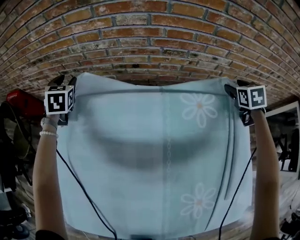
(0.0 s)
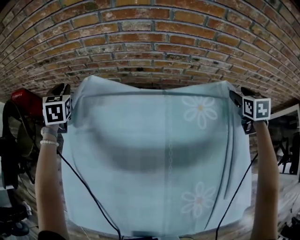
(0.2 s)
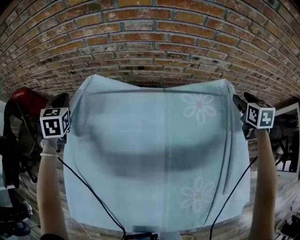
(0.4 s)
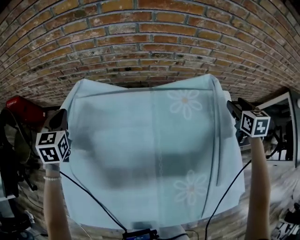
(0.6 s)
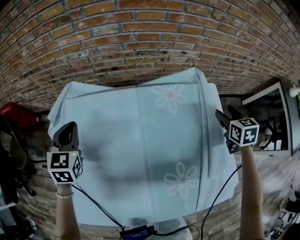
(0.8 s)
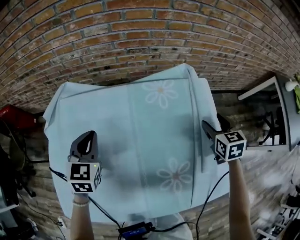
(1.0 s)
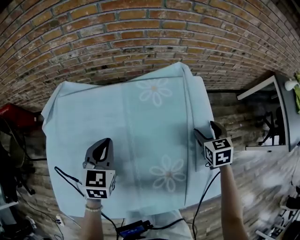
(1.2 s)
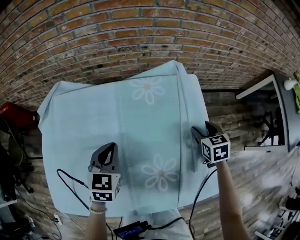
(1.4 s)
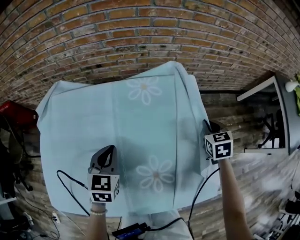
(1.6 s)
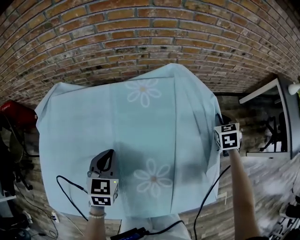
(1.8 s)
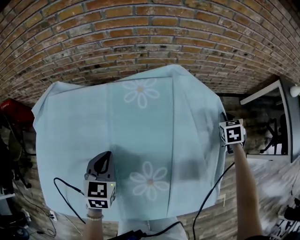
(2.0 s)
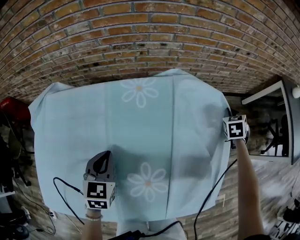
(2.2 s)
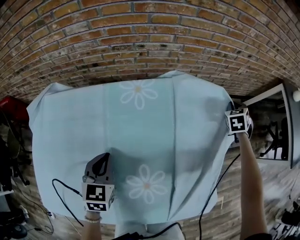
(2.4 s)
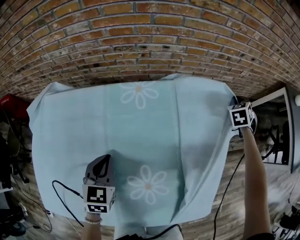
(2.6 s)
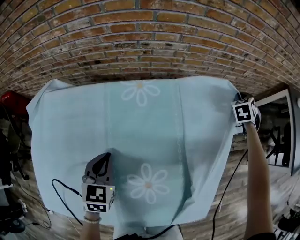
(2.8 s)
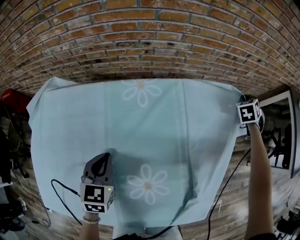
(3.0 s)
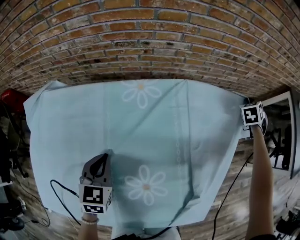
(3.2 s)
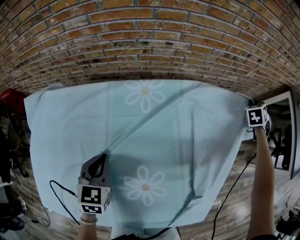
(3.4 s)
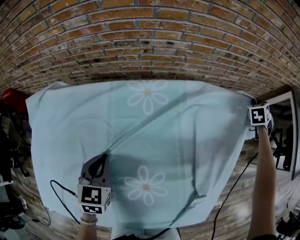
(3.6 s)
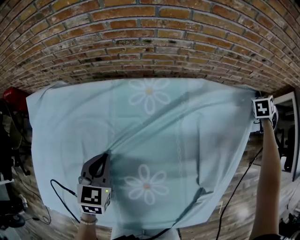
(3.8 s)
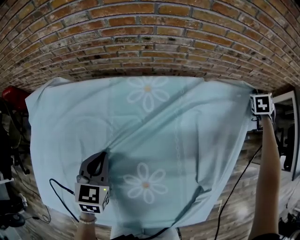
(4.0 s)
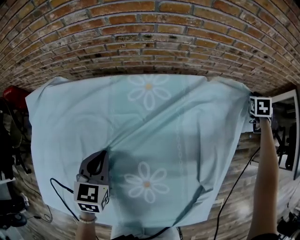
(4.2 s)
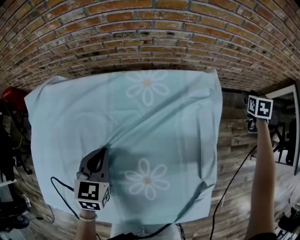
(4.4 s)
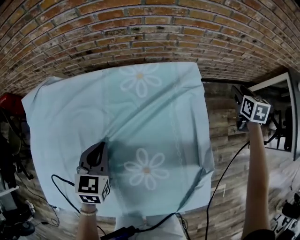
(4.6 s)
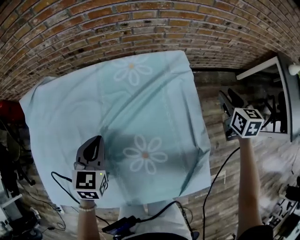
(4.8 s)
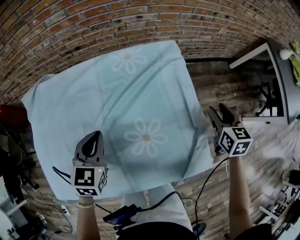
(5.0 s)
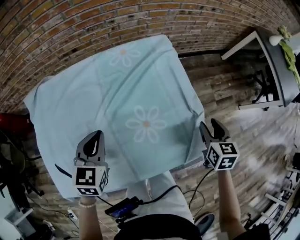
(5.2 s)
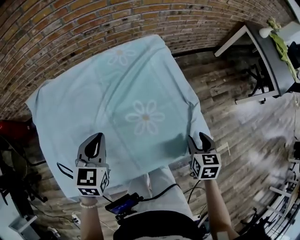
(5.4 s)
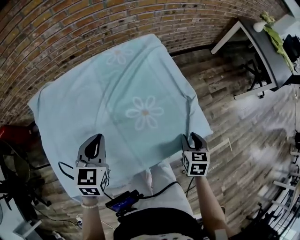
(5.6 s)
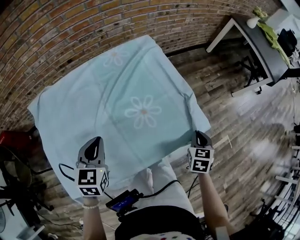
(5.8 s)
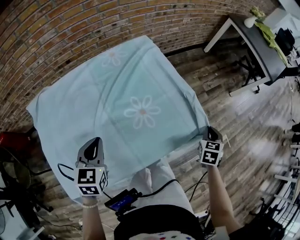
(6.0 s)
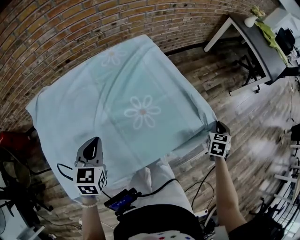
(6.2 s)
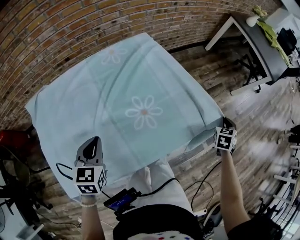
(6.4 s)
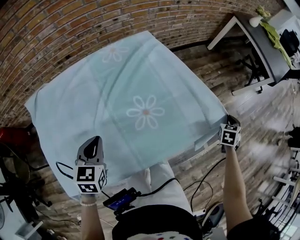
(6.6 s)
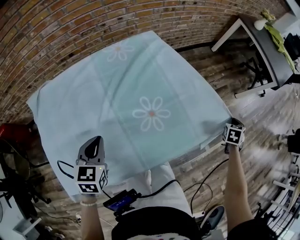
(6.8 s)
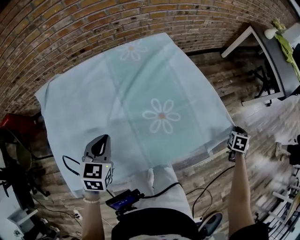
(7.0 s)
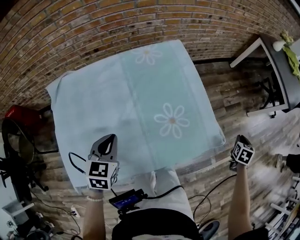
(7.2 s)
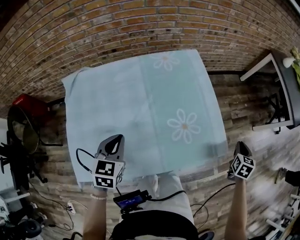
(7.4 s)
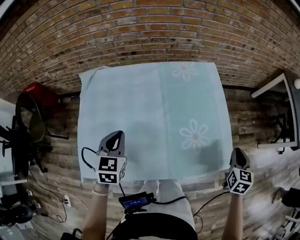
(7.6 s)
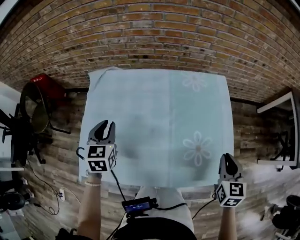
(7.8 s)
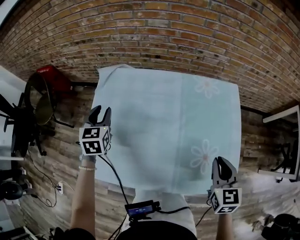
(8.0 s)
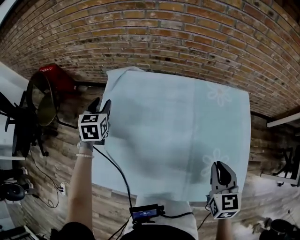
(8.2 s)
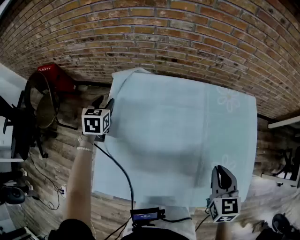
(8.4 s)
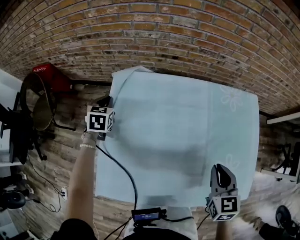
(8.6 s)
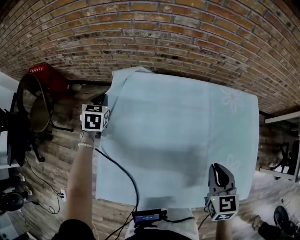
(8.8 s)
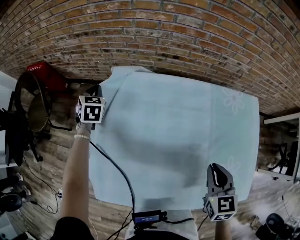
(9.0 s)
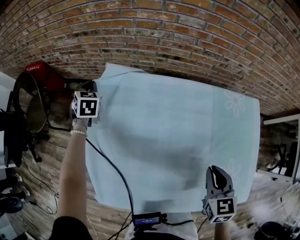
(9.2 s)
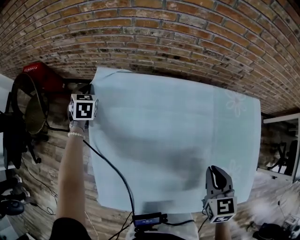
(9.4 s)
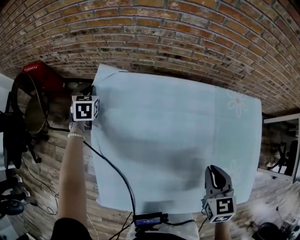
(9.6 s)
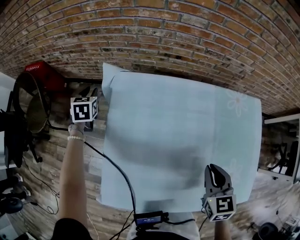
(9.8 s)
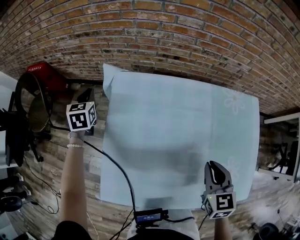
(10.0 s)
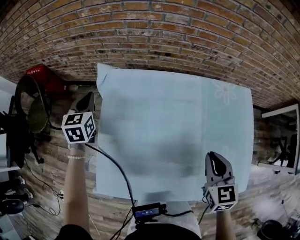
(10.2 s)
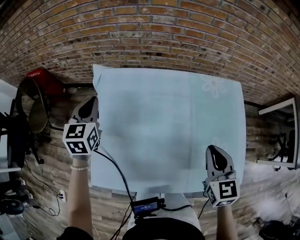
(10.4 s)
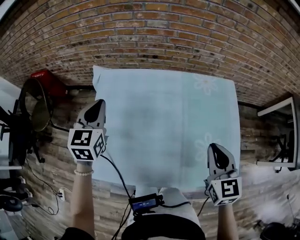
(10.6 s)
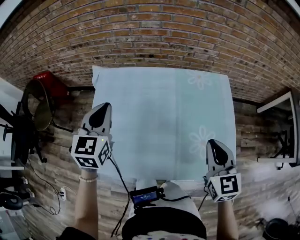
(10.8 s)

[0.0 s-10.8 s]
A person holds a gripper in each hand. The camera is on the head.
0.0 to 1.6 s: The left gripper is displaced to the right and backward by roughly 50 cm, turns by approximately 30 degrees, and closes. Meanwhile the right gripper shifts some 25 cm backward, and closes up.
1.6 to 3.0 s: The right gripper is displaced forward and to the right by some 30 cm, and swivels approximately 30 degrees.
3.0 to 4.6 s: The right gripper shifts some 5 cm backward, turns by some 40 degrees, and opens its fingers.
4.6 to 6.2 s: The right gripper changes place by about 50 cm, rotates approximately 40 degrees, and closes up; the left gripper ends up roughly 15 cm from where it was.
6.2 to 7.8 s: The right gripper moves about 30 cm, and rotates some 50 degrees. Meanwhile the left gripper changes place by approximately 20 cm, and changes its angle by some 30 degrees.
7.8 to 9.2 s: The right gripper is displaced to the left and forward by approximately 25 cm; the left gripper travels forward and to the left by roughly 40 cm, rotates some 20 degrees, and opens and closes again.
9.2 to 10.8 s: The left gripper goes approximately 40 cm backward, to the right and upward, changes its angle by roughly 30 degrees, and opens, then closes once more, while the right gripper shifts approximately 15 cm upward, to the right and backward.

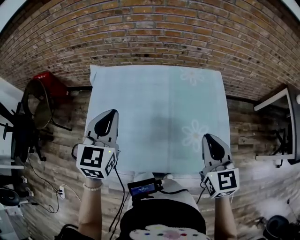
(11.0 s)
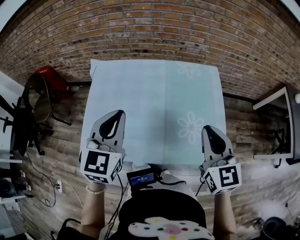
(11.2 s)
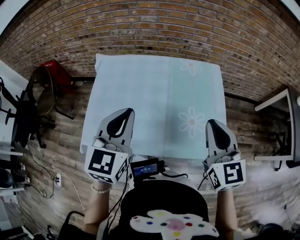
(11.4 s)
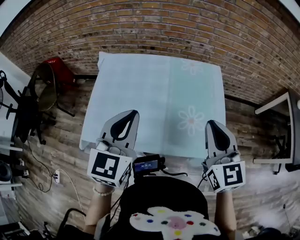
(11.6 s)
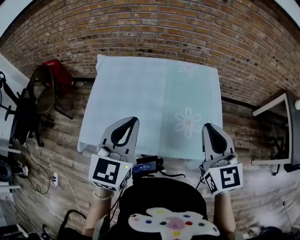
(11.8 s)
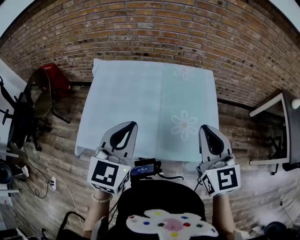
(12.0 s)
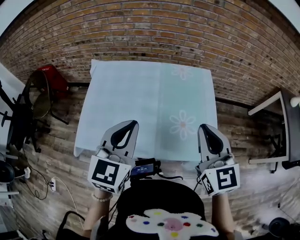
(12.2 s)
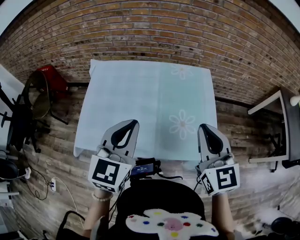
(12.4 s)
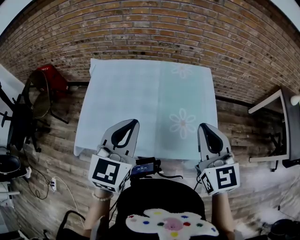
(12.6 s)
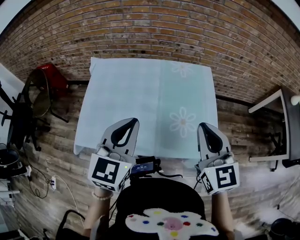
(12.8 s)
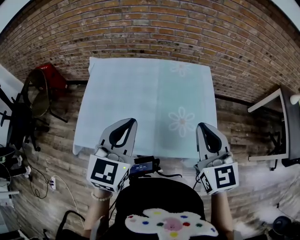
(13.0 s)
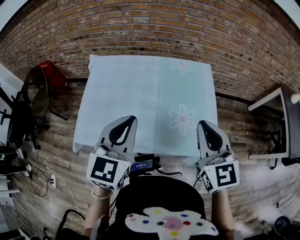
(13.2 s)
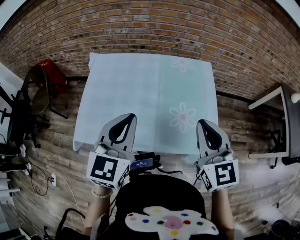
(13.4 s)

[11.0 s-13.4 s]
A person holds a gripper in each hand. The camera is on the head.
11.0 to 12.2 s: The left gripper goes some 15 cm backward and to the right. Meanwhile the right gripper travels upward and backward by about 10 cm.
12.2 to 13.4 s: The grippers make only small movements.

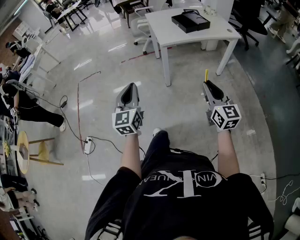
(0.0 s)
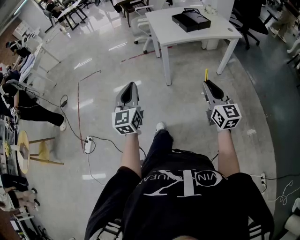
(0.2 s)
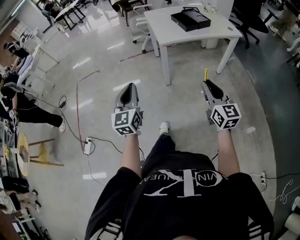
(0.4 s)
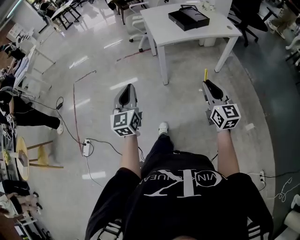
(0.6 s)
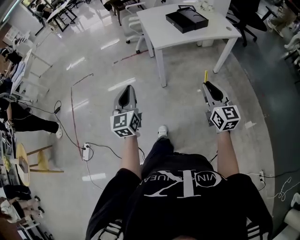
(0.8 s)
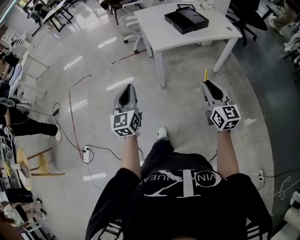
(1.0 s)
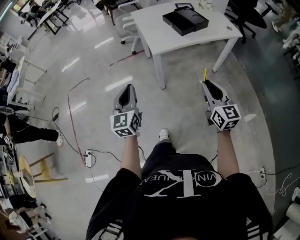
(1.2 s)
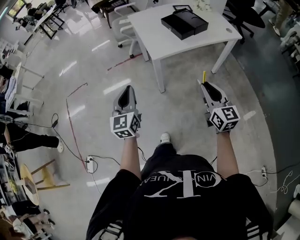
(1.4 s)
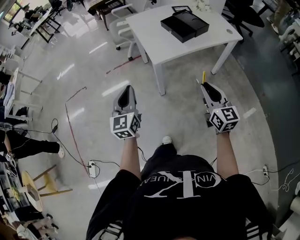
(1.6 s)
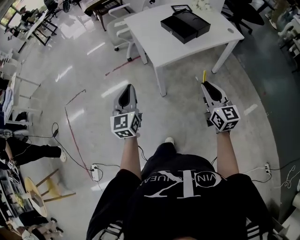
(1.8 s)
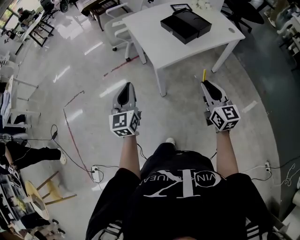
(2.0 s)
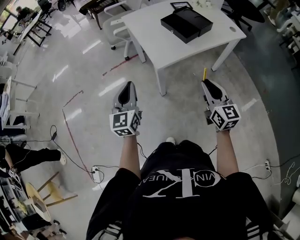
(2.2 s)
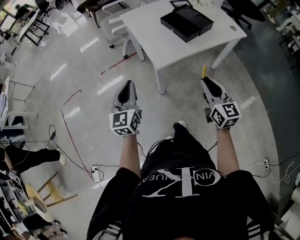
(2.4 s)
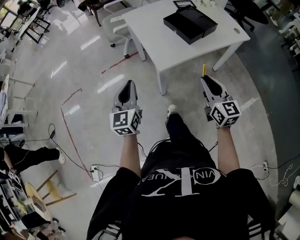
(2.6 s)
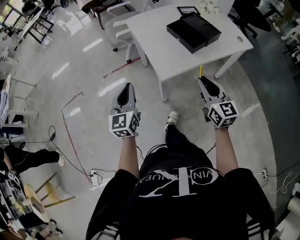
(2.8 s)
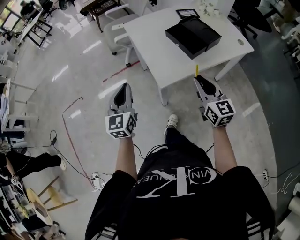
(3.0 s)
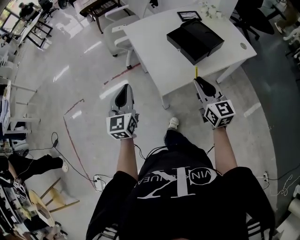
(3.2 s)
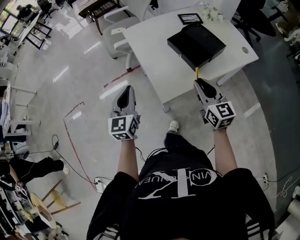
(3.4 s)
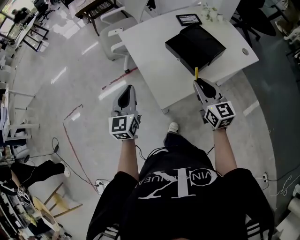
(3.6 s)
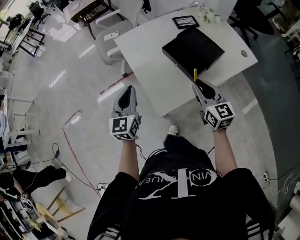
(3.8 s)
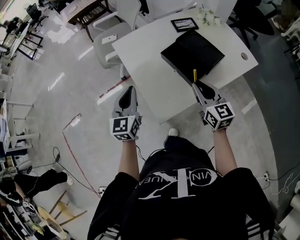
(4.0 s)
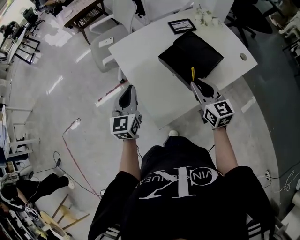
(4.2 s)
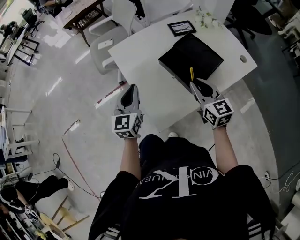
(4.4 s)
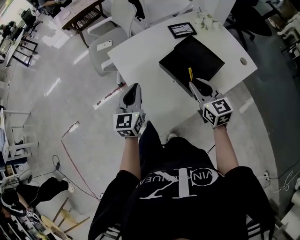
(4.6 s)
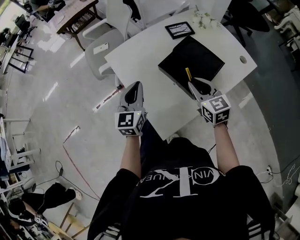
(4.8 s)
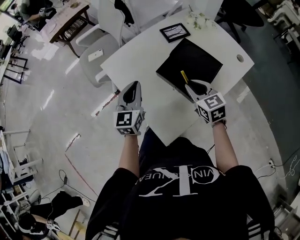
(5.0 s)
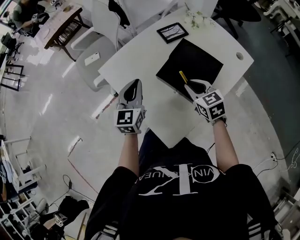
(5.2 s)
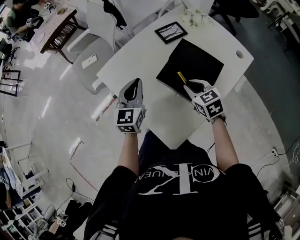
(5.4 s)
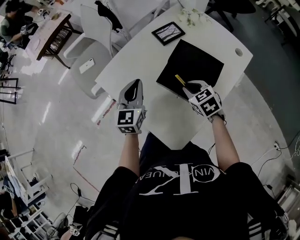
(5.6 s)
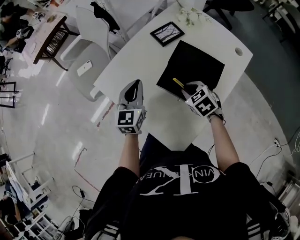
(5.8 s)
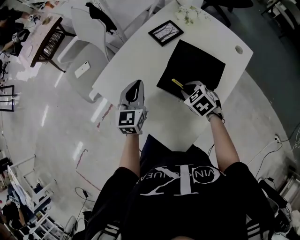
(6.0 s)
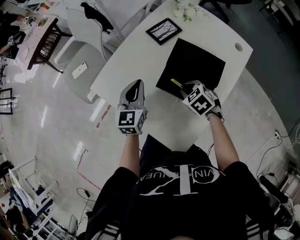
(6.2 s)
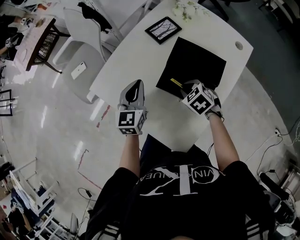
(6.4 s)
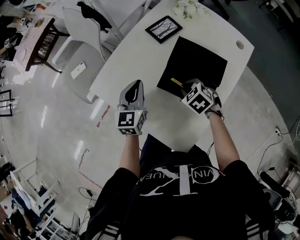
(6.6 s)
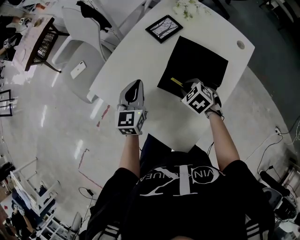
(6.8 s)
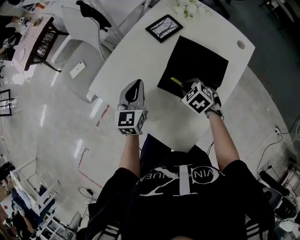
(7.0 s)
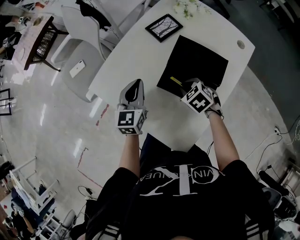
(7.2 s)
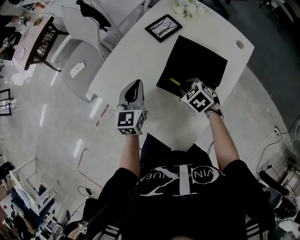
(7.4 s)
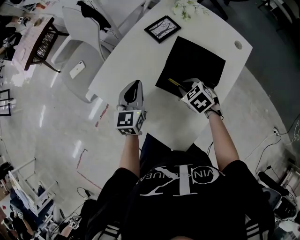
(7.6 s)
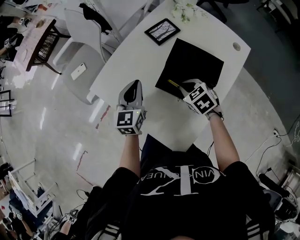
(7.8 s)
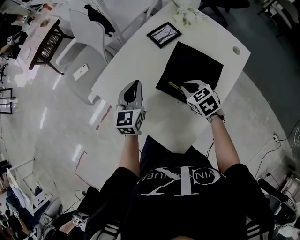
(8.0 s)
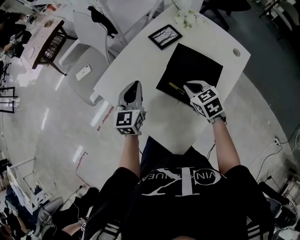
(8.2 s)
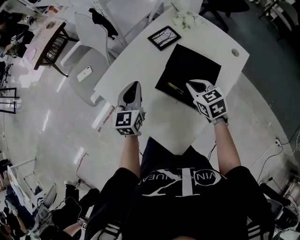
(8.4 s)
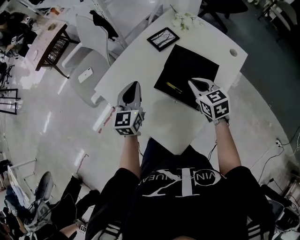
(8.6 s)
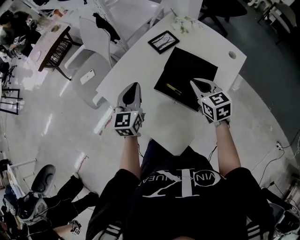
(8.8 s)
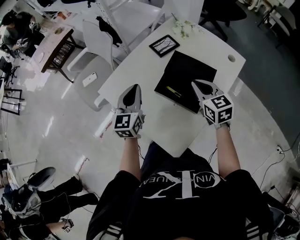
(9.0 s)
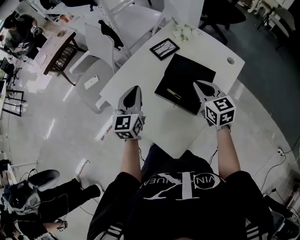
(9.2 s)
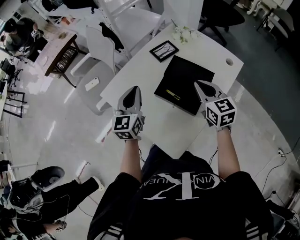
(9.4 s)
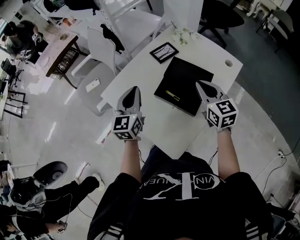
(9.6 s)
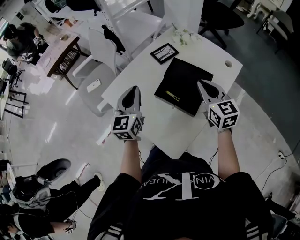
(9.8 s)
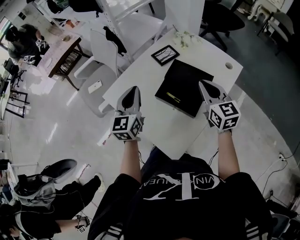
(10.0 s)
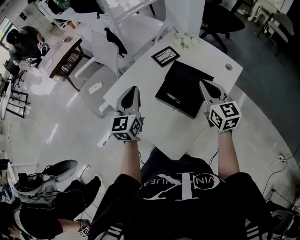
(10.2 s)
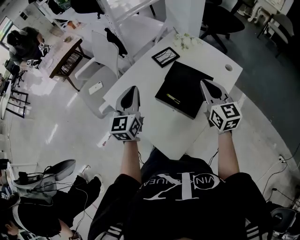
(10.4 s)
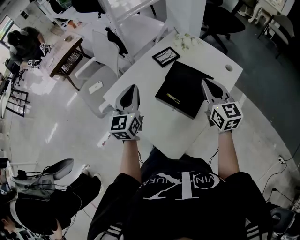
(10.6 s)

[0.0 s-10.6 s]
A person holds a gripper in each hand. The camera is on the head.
0.0 to 1.6 s: Both grippers move forward, some 25 cm.
1.6 to 3.0 s: The grippers both shift forward by some 20 cm.
3.0 to 4.6 s: The right gripper heads forward, covering roughly 20 cm; the left gripper travels forward and to the right by about 25 cm.
4.6 to 6.0 s: The left gripper goes about 20 cm forward, and turns by roughly 20 degrees. Meanwhile the right gripper heads downward and forward, covering approximately 15 cm, and tilts its fingers about 40 degrees downward.
6.0 to 7.6 s: The grippers move only a little.
7.6 to 9.0 s: The left gripper shifts about 10 cm upward, while the right gripper heads upward and to the right, covering about 15 cm, and tilts its fingers roughly 30 degrees upward.
9.0 to 10.6 s: Both grippers travel together upward, about 10 cm.
